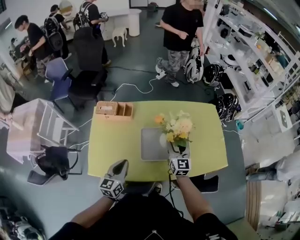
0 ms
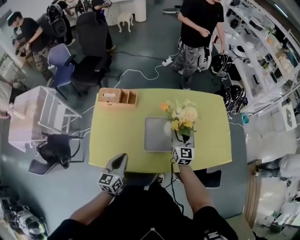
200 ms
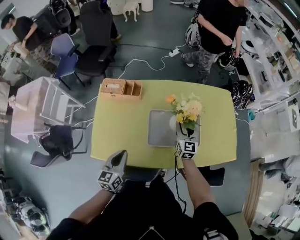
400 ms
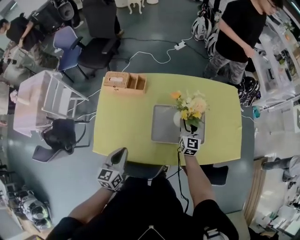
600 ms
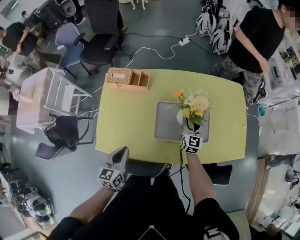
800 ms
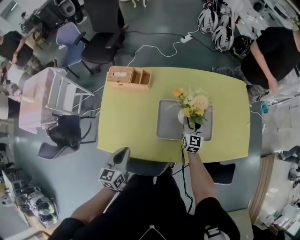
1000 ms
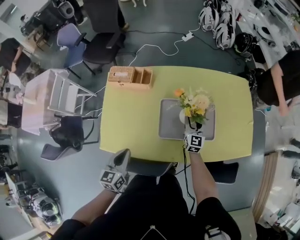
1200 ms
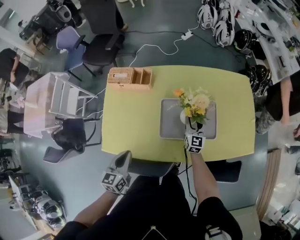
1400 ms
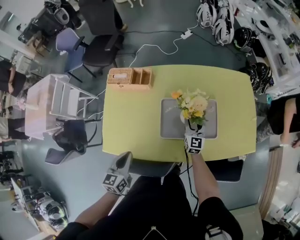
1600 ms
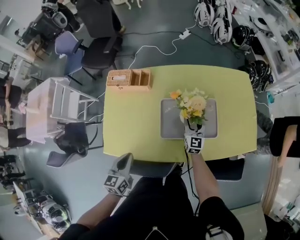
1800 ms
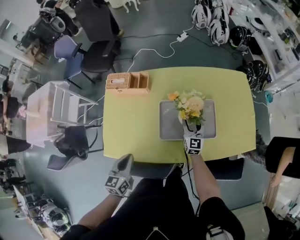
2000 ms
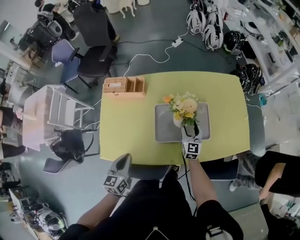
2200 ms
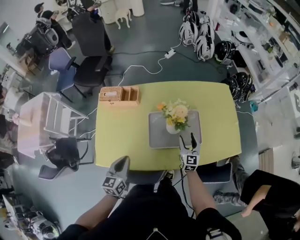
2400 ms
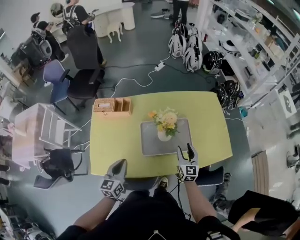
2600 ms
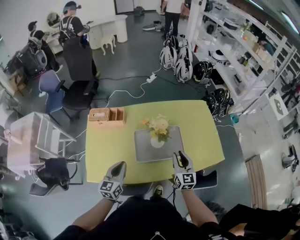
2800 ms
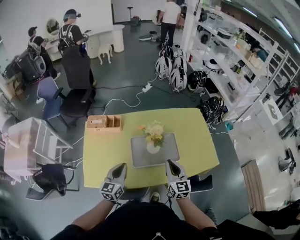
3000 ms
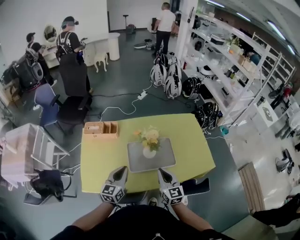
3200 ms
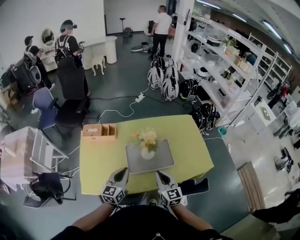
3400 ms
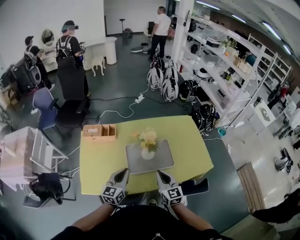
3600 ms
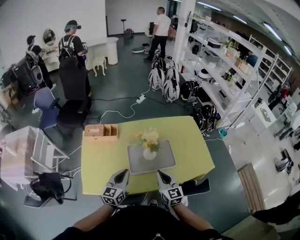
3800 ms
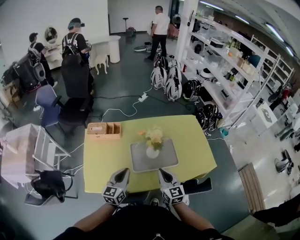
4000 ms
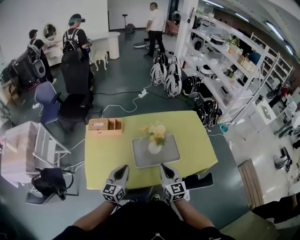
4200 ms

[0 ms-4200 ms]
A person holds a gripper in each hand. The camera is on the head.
0 ms to 1400 ms: The right gripper goes some 20 cm downward; the left gripper is displaced downward by roughly 10 cm.
1400 ms to 2800 ms: The left gripper travels upward and to the right by roughly 10 cm. Meanwhile the right gripper heads upward, backward and to the right, covering about 25 cm.
2800 ms to 4200 ms: The right gripper moves to the left, backward and upward, roughly 15 cm, and closes up; the left gripper travels upward by roughly 5 cm.

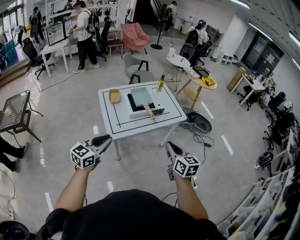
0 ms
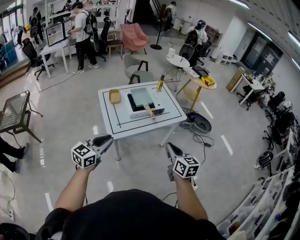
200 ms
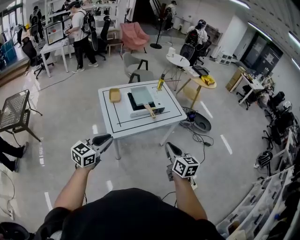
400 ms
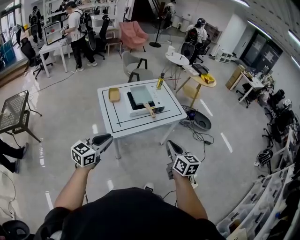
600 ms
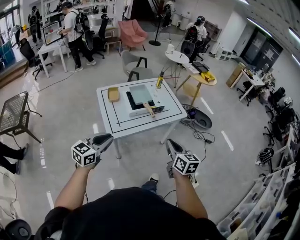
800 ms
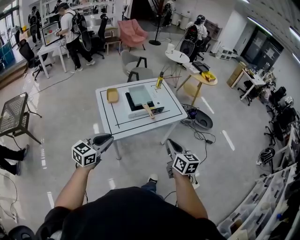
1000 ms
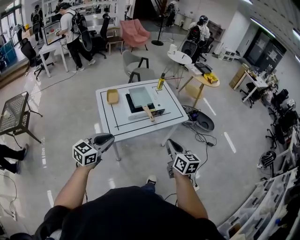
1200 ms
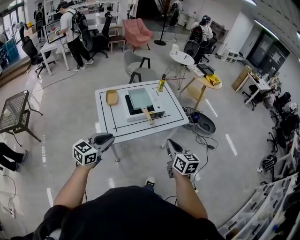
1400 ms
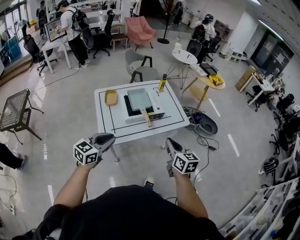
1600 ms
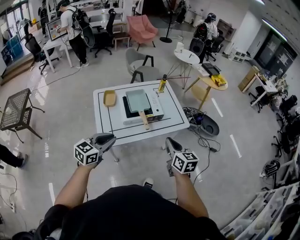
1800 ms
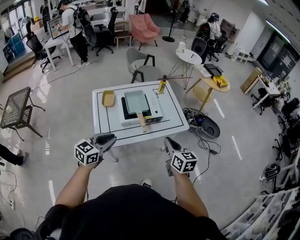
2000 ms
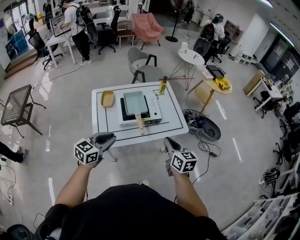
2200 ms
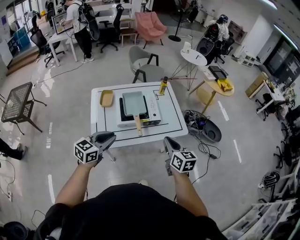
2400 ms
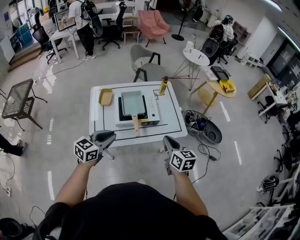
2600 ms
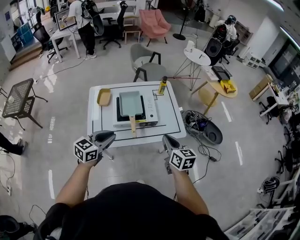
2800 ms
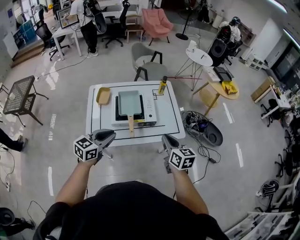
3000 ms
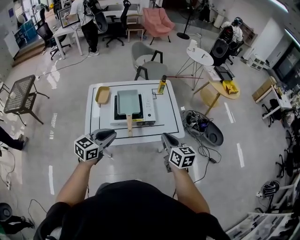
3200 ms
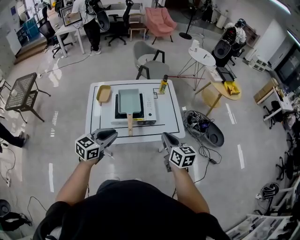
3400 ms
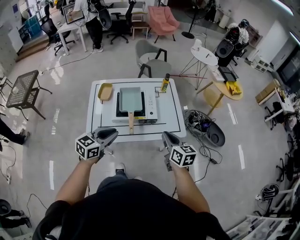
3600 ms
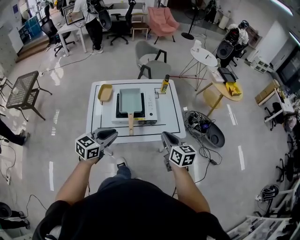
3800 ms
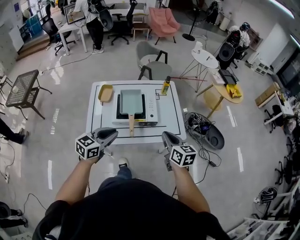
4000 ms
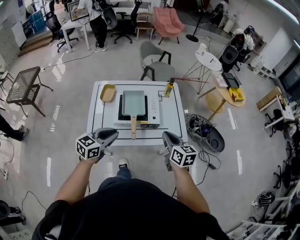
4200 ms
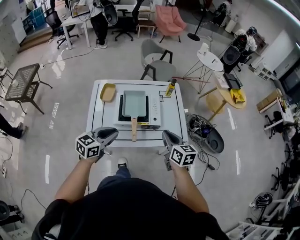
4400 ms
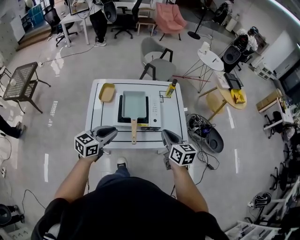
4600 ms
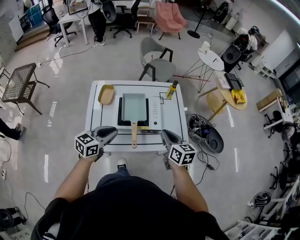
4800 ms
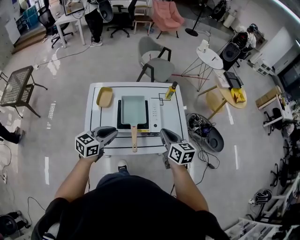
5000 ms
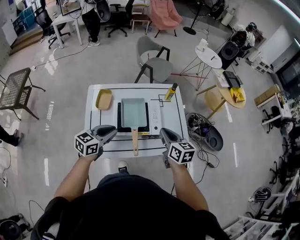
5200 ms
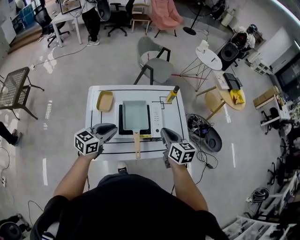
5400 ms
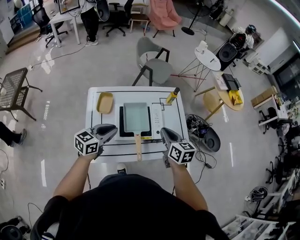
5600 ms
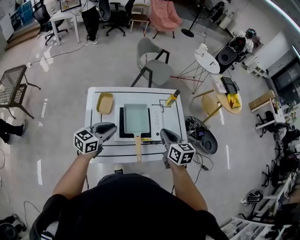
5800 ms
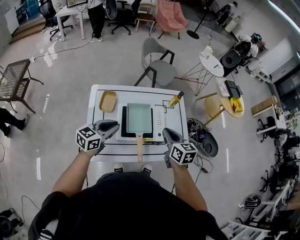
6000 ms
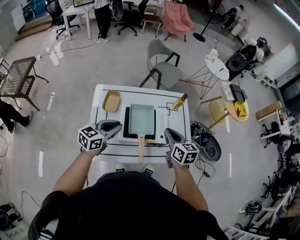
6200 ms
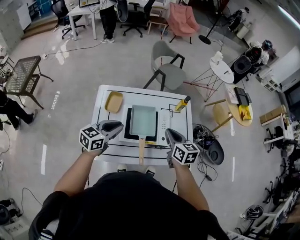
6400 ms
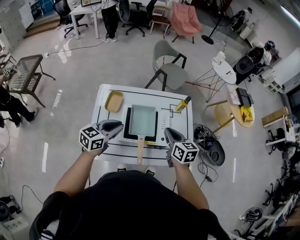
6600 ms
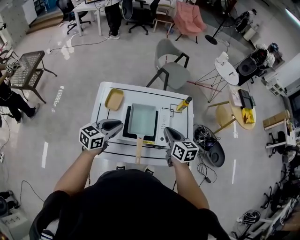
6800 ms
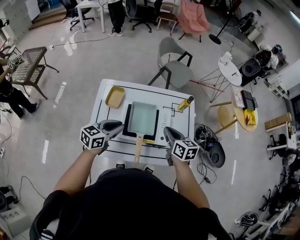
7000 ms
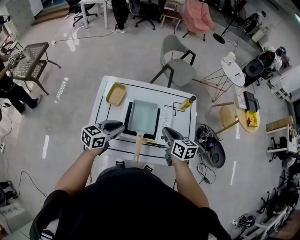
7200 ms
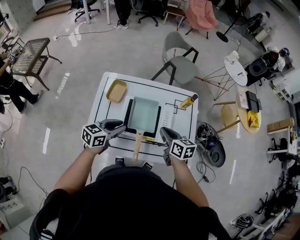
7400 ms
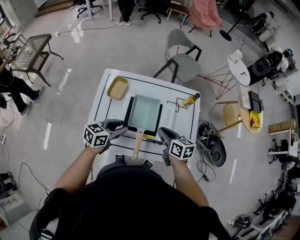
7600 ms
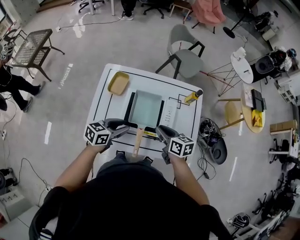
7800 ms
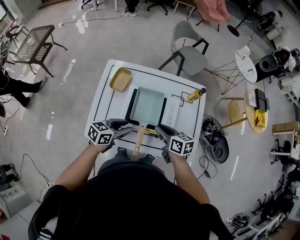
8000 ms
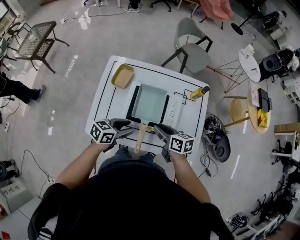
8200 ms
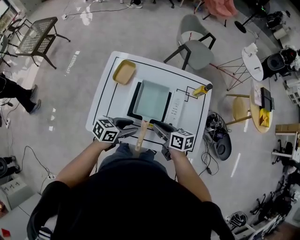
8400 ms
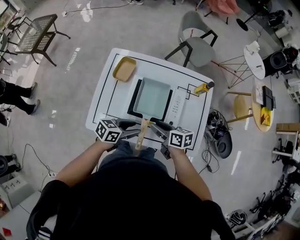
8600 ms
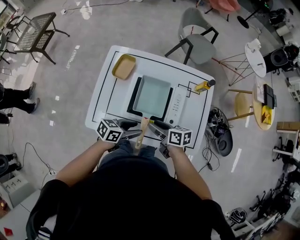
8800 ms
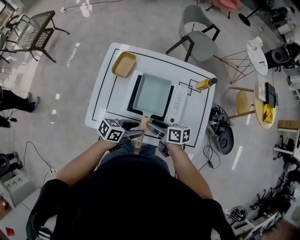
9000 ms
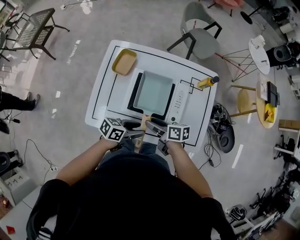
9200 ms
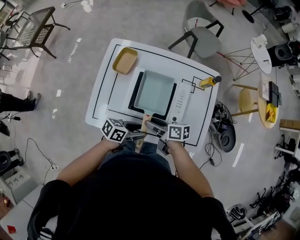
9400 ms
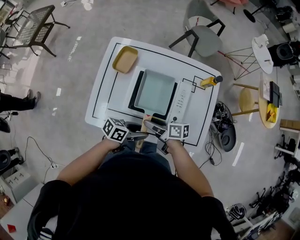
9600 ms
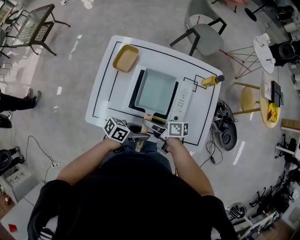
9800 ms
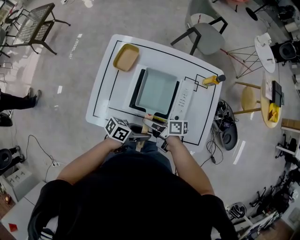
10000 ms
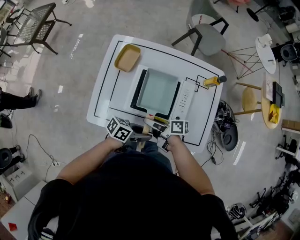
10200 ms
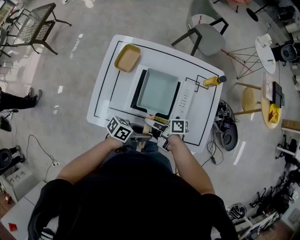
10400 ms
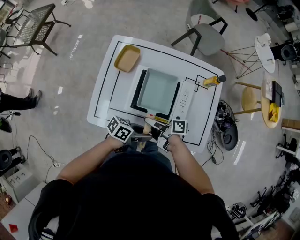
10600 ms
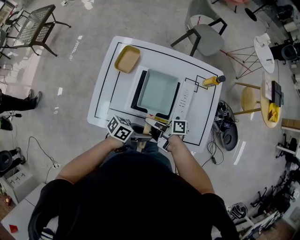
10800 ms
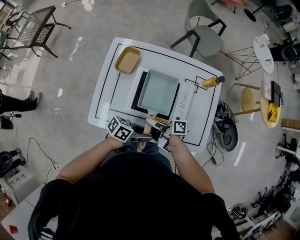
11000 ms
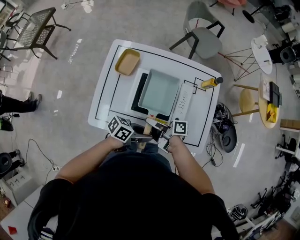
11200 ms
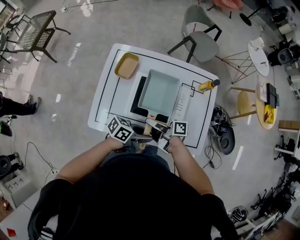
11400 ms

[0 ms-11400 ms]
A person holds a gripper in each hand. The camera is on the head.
0 ms to 1400 ms: The grippers both shift forward by approximately 10 cm.
1400 ms to 2800 ms: Both grippers move forward and to the right, approximately 20 cm.
2800 ms to 4200 ms: The right gripper moves forward, approximately 5 cm.
4200 ms to 5600 ms: The two grippers go some 15 cm forward and to the left.
5600 ms to 7200 ms: The right gripper travels downward and forward by approximately 10 cm. The left gripper changes place by some 5 cm.
7200 ms to 8600 ms: Both grippers travel together downward, roughly 10 cm. The right gripper turns by approximately 30 degrees, and opens up; the left gripper changes its angle by some 20 degrees, and opens its fingers.
8600 ms to 10000 ms: The right gripper goes approximately 5 cm downward, and rotates some 30 degrees, while the left gripper moves some 10 cm, and rotates approximately 20 degrees.
10000 ms to 11400 ms: The grippers move only a little.

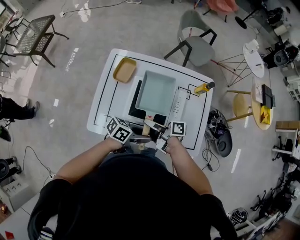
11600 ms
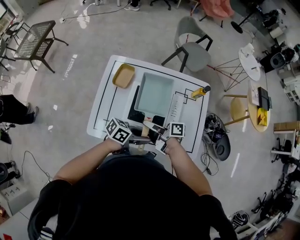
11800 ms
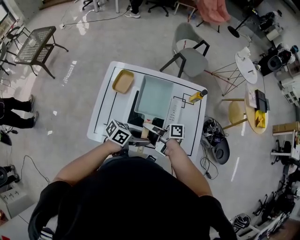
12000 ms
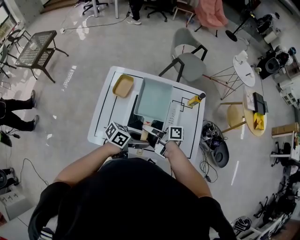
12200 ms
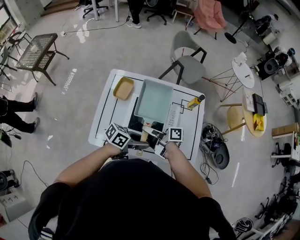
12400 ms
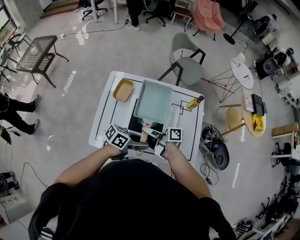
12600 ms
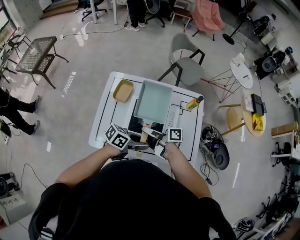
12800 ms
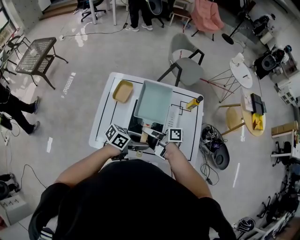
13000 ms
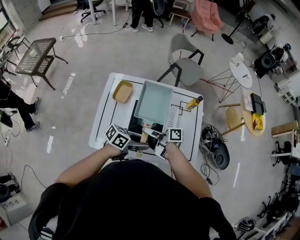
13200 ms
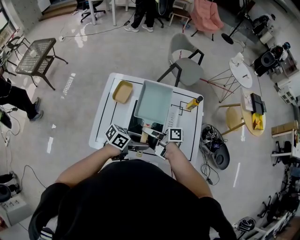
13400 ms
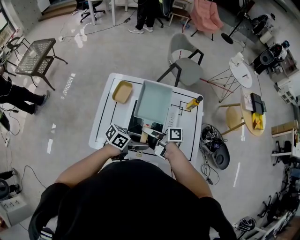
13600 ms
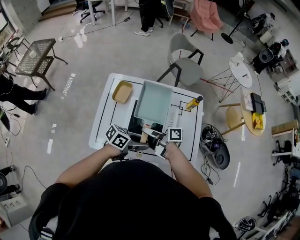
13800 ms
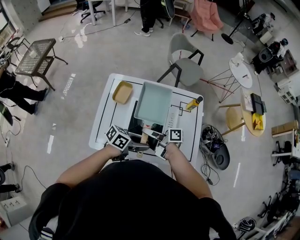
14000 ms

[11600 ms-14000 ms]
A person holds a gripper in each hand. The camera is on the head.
11600 ms to 12800 ms: Both grippers move upward, approximately 5 cm.
12800 ms to 14000 ms: Both grippers stay about where they are.

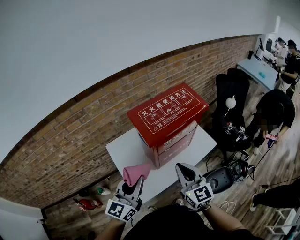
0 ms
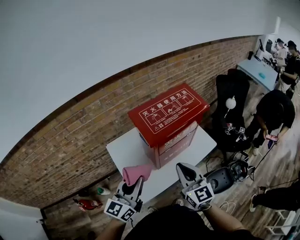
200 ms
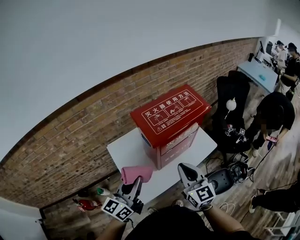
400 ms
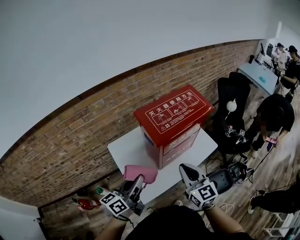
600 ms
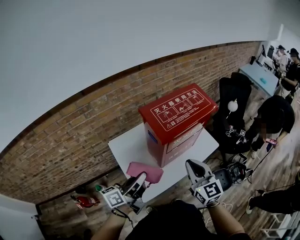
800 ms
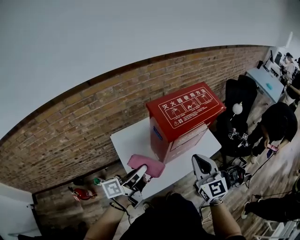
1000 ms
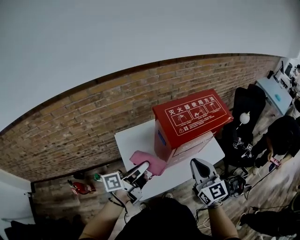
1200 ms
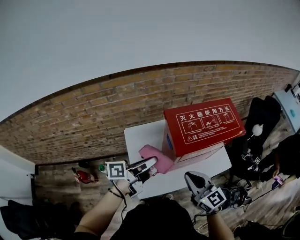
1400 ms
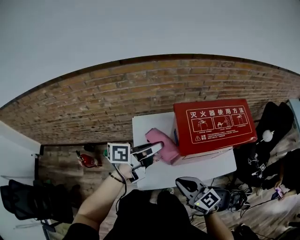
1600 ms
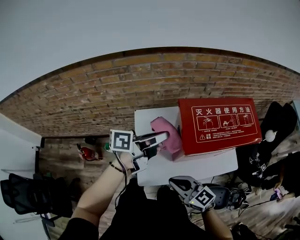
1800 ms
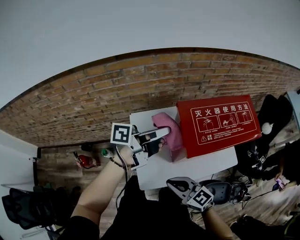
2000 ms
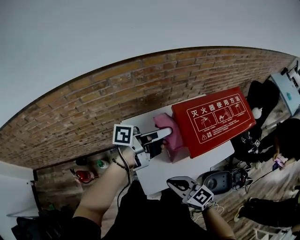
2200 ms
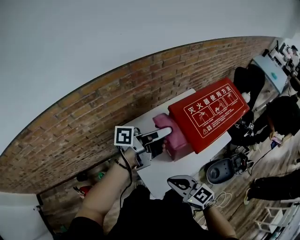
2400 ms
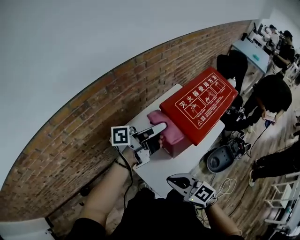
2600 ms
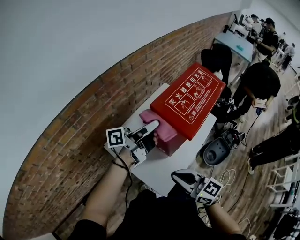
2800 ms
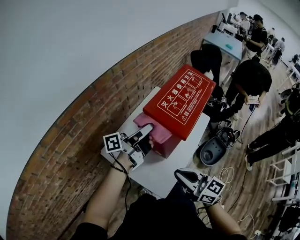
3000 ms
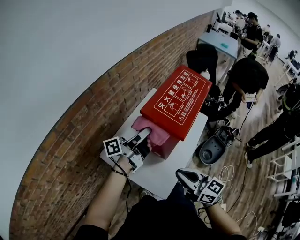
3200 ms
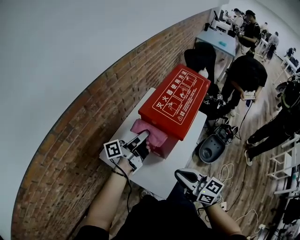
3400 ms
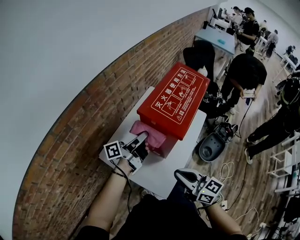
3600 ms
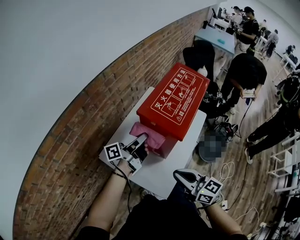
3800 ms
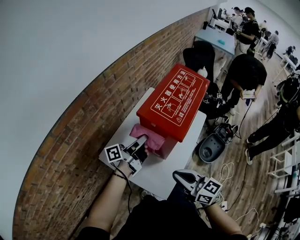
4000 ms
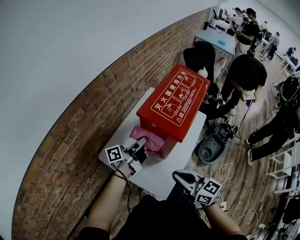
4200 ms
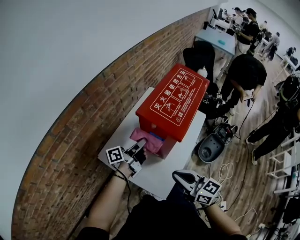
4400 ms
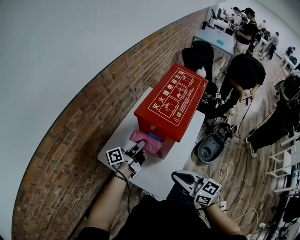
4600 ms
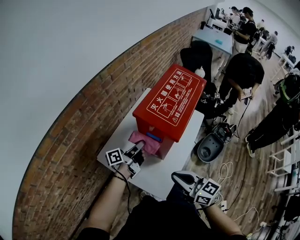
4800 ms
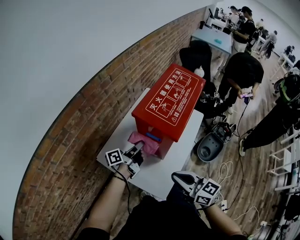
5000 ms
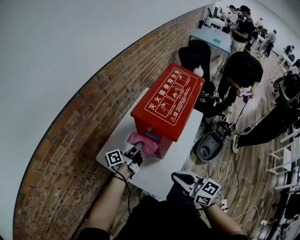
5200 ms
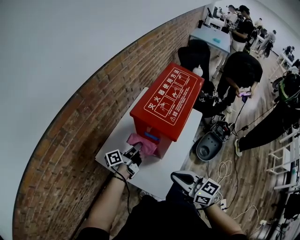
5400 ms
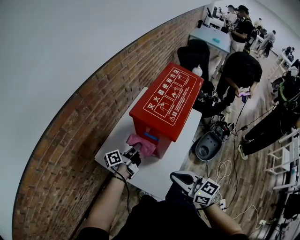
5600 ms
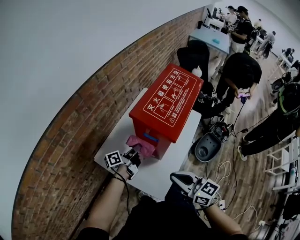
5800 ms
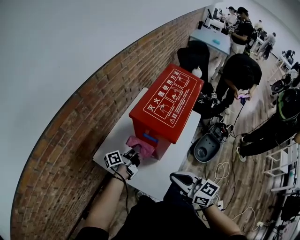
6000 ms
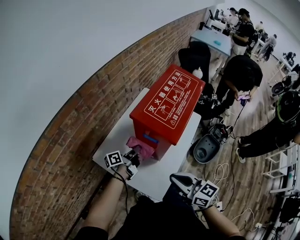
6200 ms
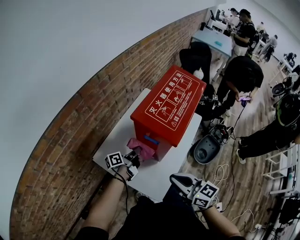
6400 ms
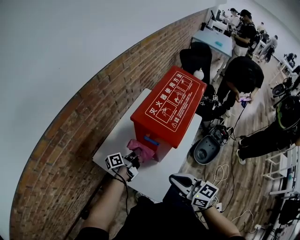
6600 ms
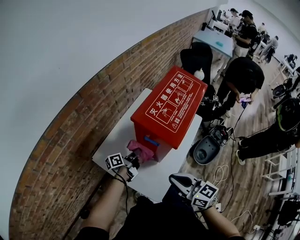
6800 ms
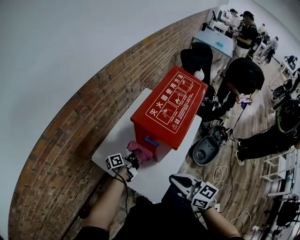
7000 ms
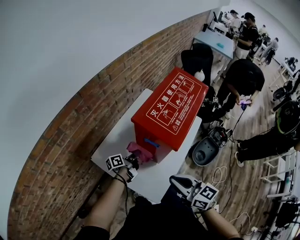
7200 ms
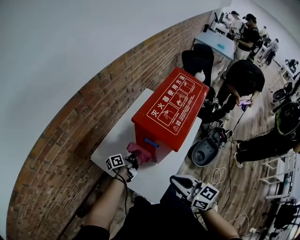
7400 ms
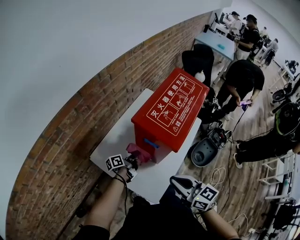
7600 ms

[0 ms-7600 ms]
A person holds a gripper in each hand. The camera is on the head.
0 ms to 1600 ms: The right gripper is displaced downward by about 10 cm, and swivels approximately 50 degrees.
1600 ms to 3000 ms: The right gripper shifts by some 10 cm, and swivels about 50 degrees.
